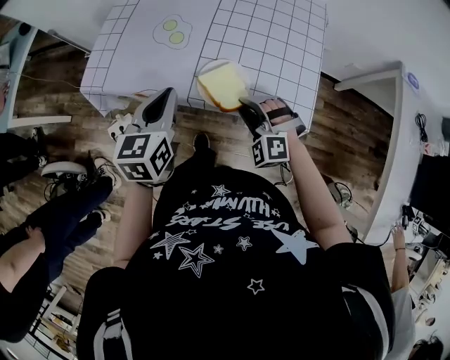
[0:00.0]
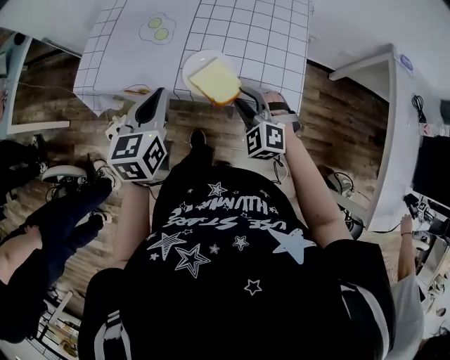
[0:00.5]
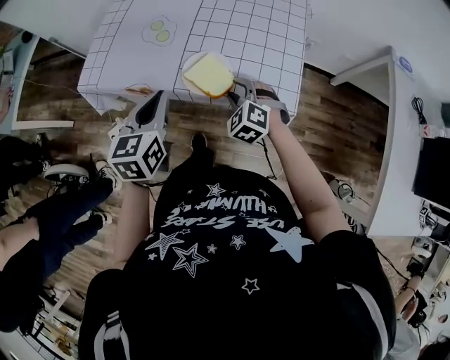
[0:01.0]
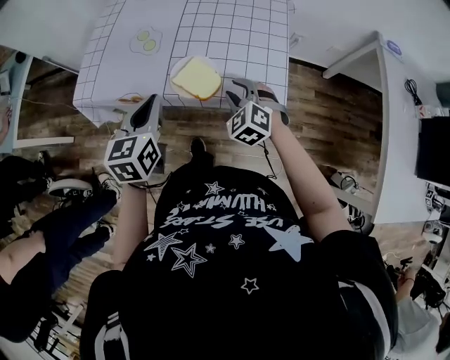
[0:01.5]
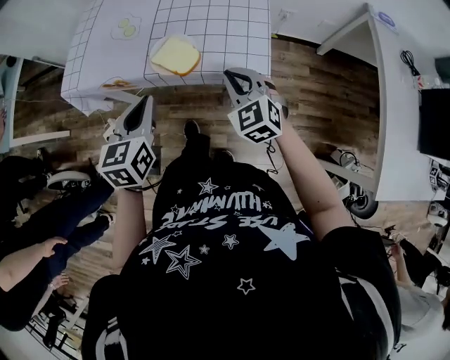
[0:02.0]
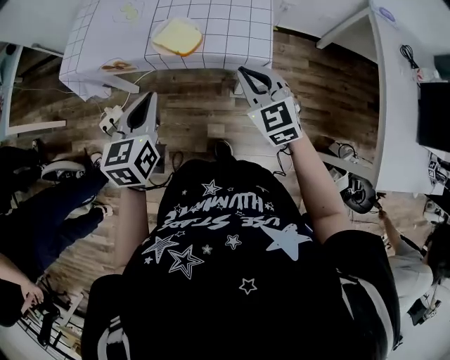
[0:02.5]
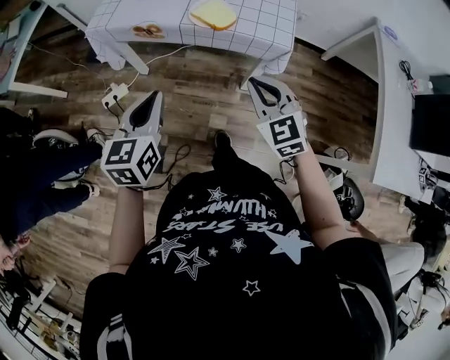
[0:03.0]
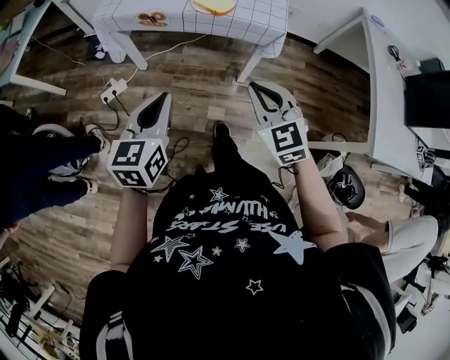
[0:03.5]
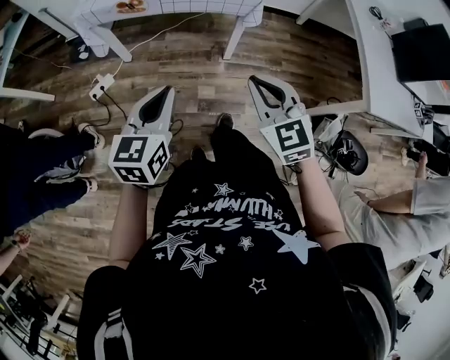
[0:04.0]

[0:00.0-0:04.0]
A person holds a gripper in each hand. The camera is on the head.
0:00.0 to 0:02.0: The left gripper goes about 15 cm backward and to the right. Meanwhile the right gripper travels to the right, upward and backward by some 15 cm, rotates around the line of its fingers by about 40 degrees, clockwise from behind, and closes up.
0:02.0 to 0:04.0: The two grippers go roughly 40 cm backward.

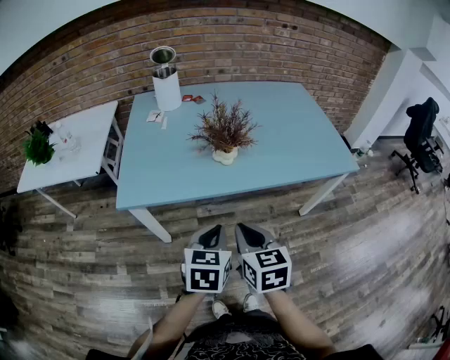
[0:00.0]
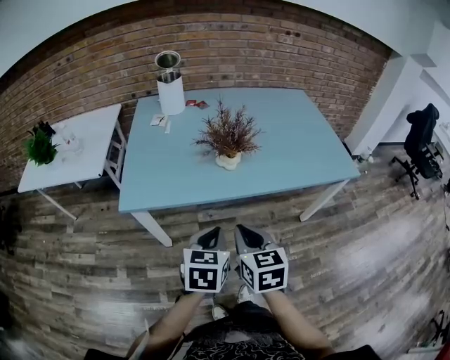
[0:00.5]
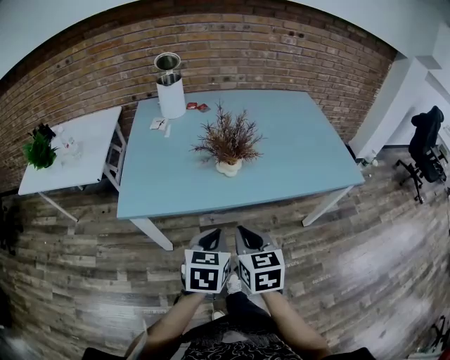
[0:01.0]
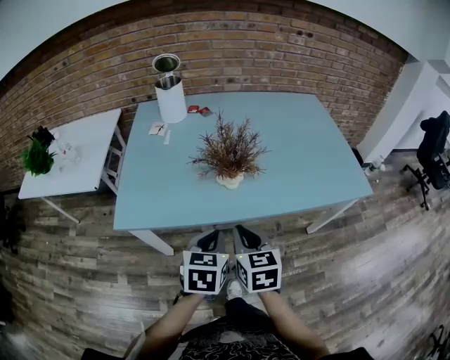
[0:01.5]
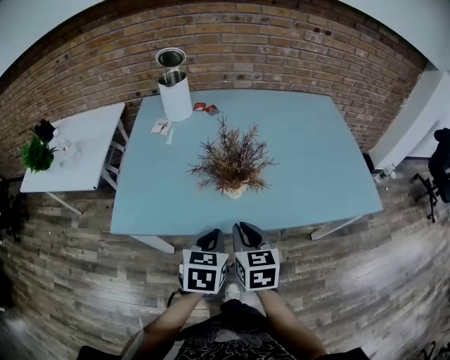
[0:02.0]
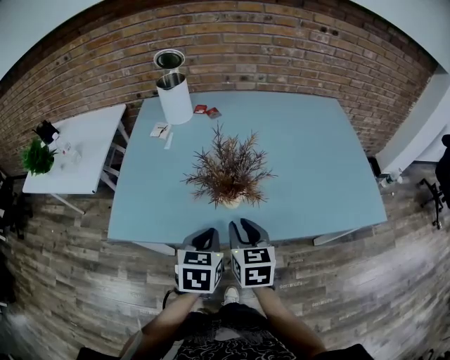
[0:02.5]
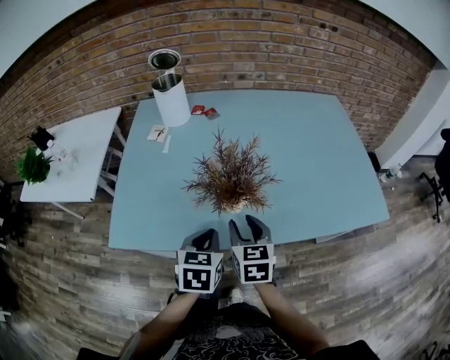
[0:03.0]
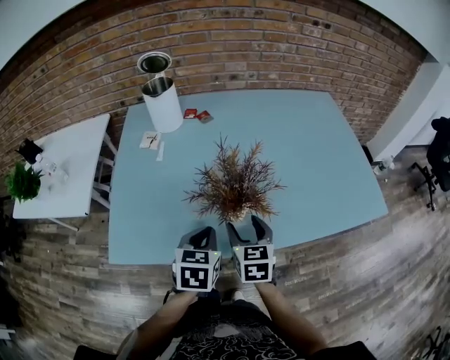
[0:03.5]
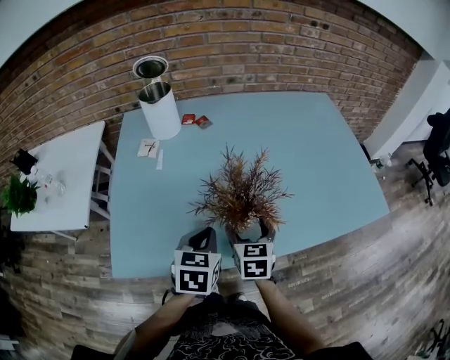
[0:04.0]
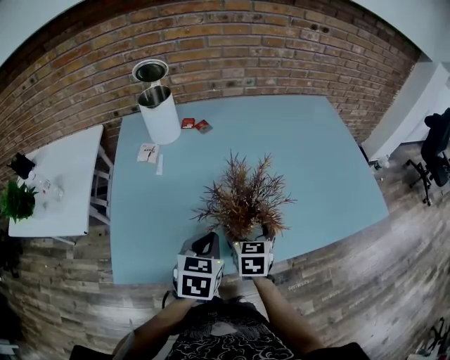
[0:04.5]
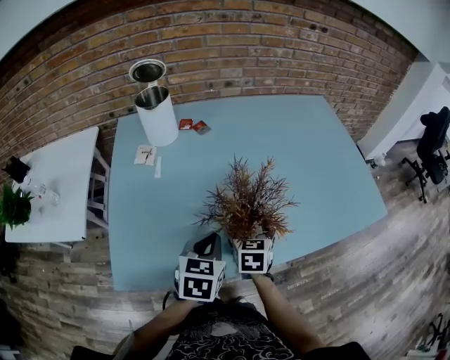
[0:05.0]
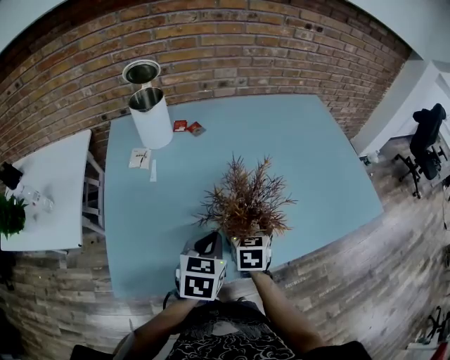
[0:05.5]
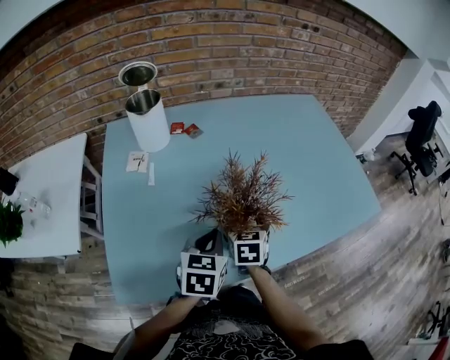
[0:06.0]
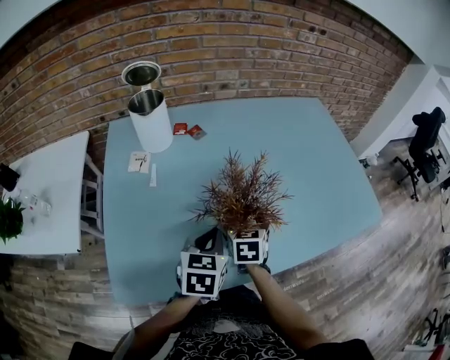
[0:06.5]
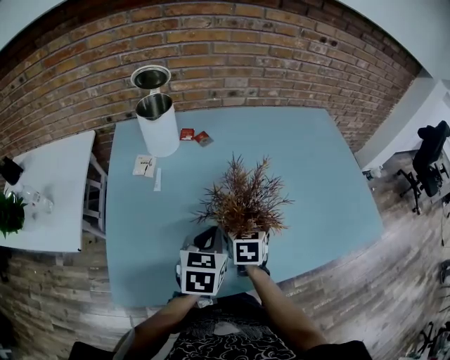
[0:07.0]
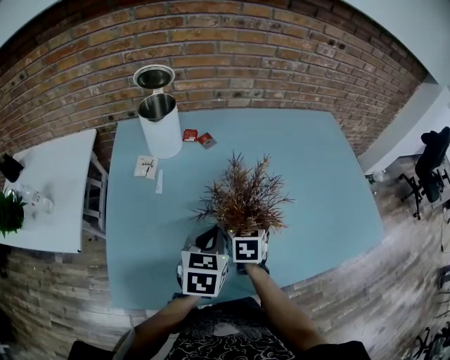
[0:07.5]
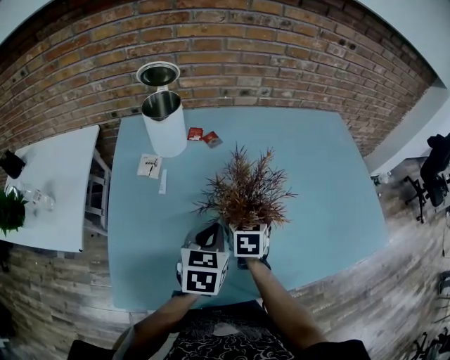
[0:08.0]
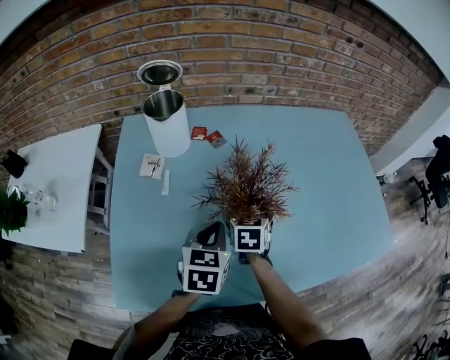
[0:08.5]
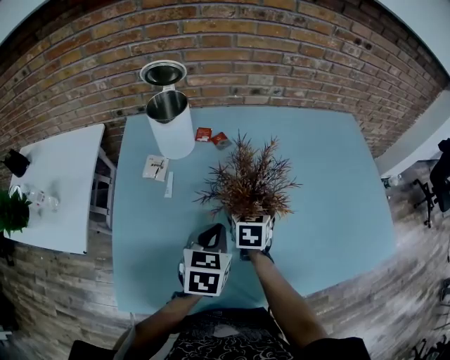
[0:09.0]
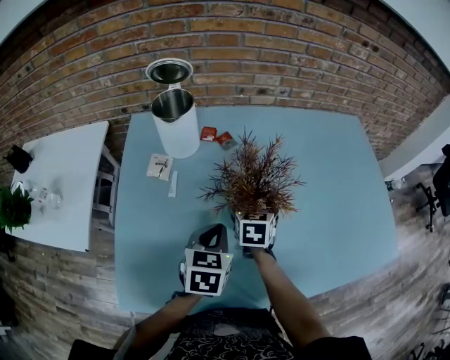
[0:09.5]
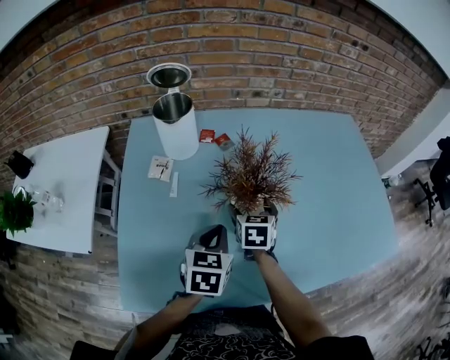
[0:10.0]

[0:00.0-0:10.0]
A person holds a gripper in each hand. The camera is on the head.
0:00.0 to 0:02.0: The two grippers go roughly 15 cm forward.
0:02.0 to 0:04.0: The left gripper goes roughly 15 cm forward and to the left. Meanwhile the right gripper heads forward and downward, covering approximately 15 cm, and opens.
0:04.0 to 0:06.0: The right gripper goes roughly 5 cm forward.
0:06.0 to 0:08.0: Both grippers move forward, approximately 10 cm.

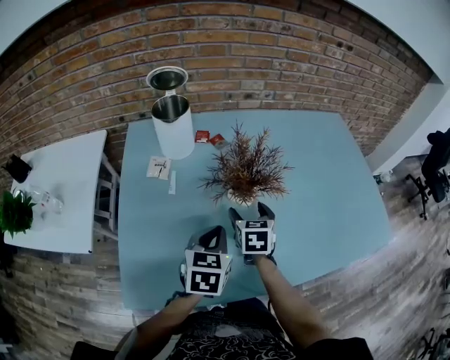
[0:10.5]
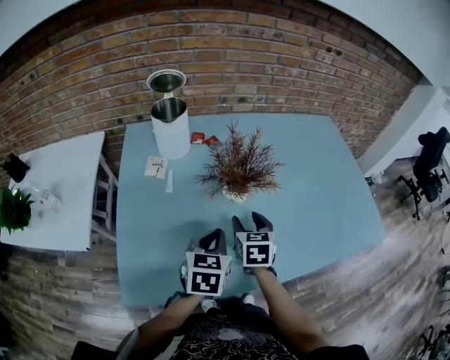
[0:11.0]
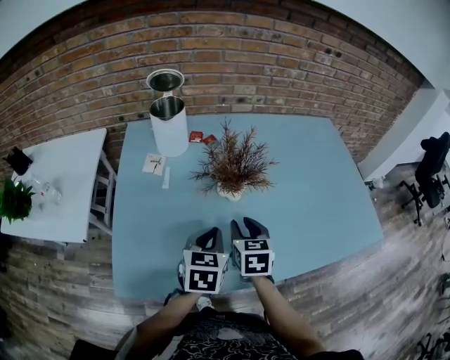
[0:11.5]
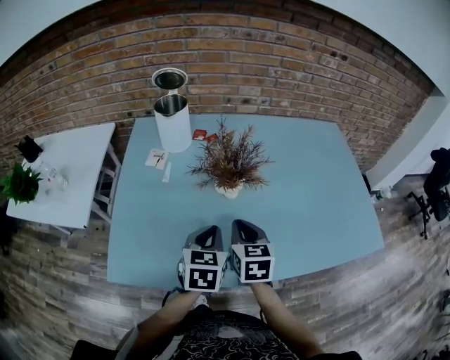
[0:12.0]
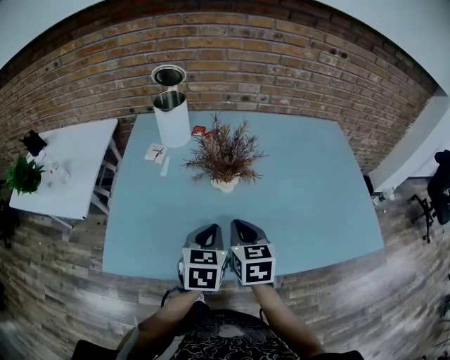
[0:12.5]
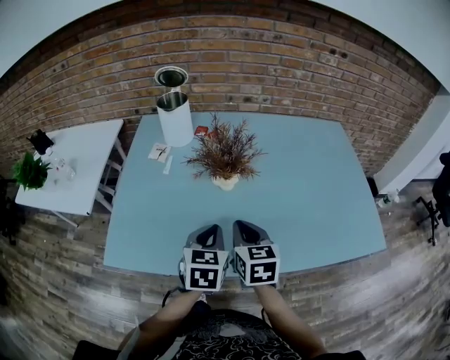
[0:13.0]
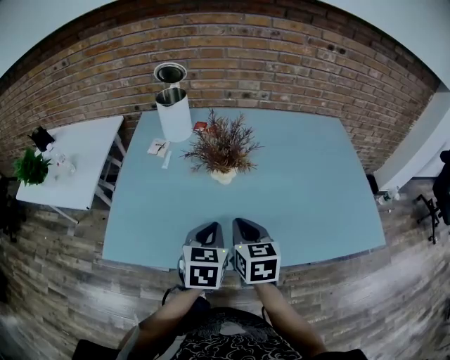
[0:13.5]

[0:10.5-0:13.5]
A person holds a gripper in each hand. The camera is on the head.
0:10.5 to 0:12.0: The right gripper is displaced backward and upward by about 10 cm, and closes. The left gripper shifts by about 5 cm.
0:12.0 to 0:13.5: The left gripper ends up approximately 5 cm from where it was, while the right gripper shifts roughly 5 cm backward.

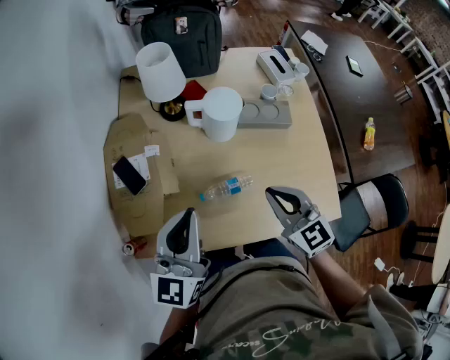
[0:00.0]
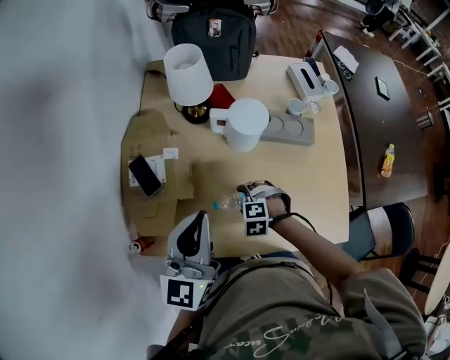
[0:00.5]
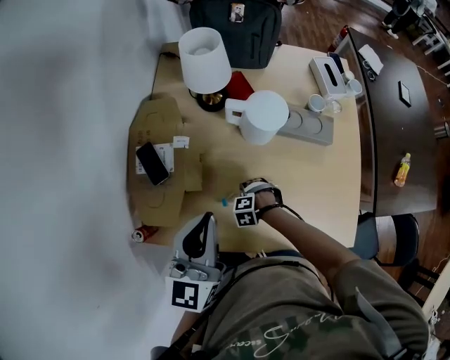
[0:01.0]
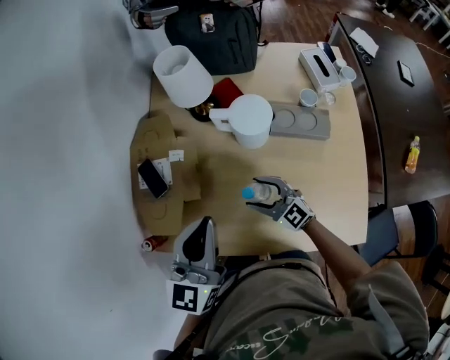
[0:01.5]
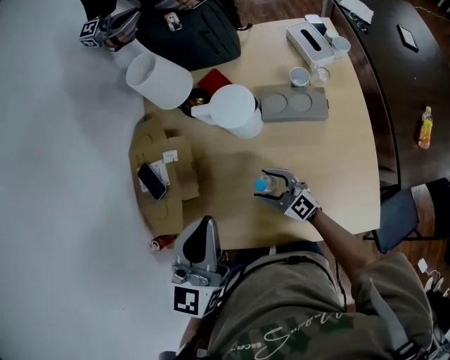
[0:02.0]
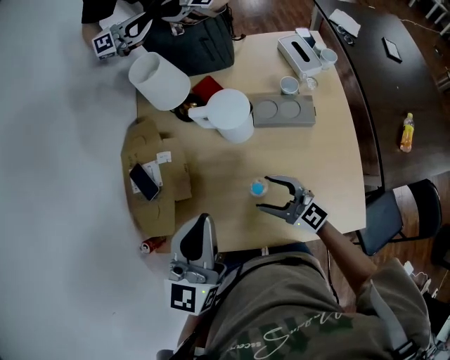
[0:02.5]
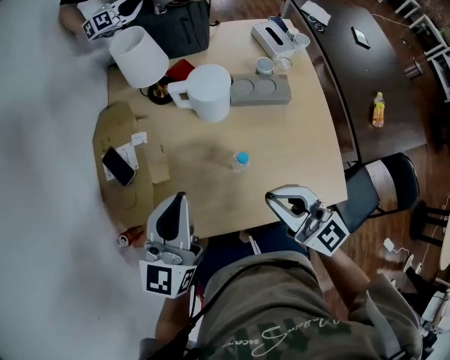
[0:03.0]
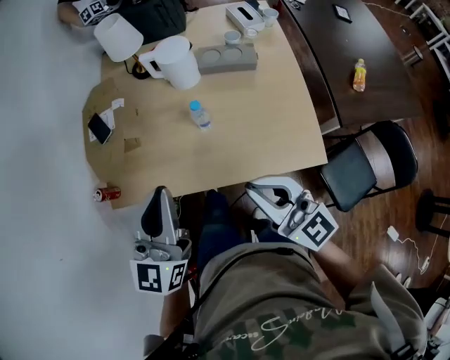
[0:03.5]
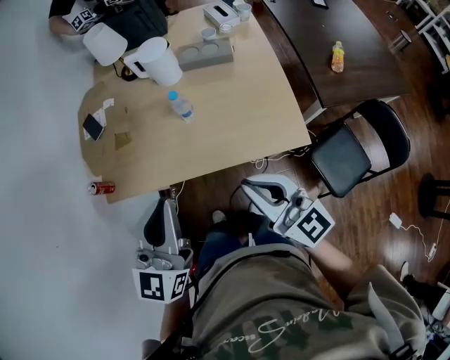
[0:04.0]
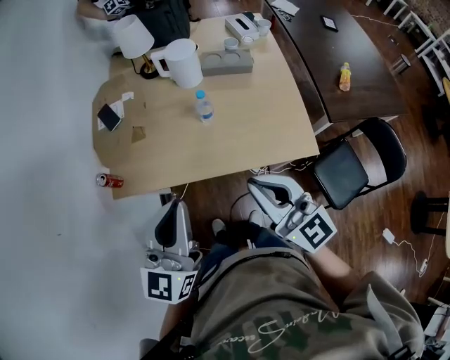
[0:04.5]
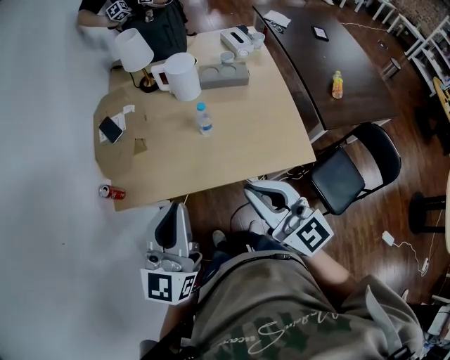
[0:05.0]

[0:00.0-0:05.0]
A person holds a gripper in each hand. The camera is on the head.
0:00.0 to 0:02.5: The right gripper goes up and down, roughly 35 cm each way, reversing 3 times, changes its angle by some 30 degrees, and opens its fingers. The left gripper changes place by about 10 cm.
0:02.5 to 0:05.0: The right gripper travels backward and upward by roughly 35 cm, swivels approximately 20 degrees, and closes up, while the left gripper is displaced backward by some 30 cm.

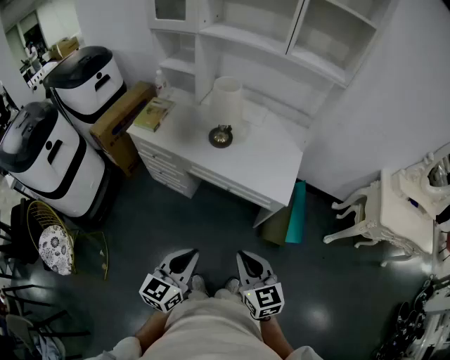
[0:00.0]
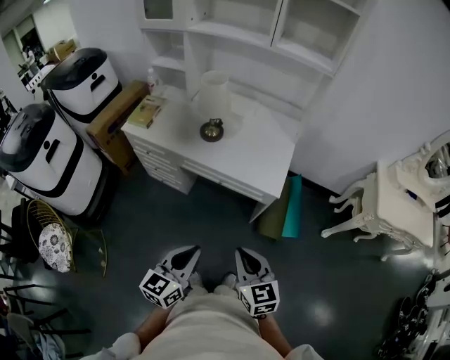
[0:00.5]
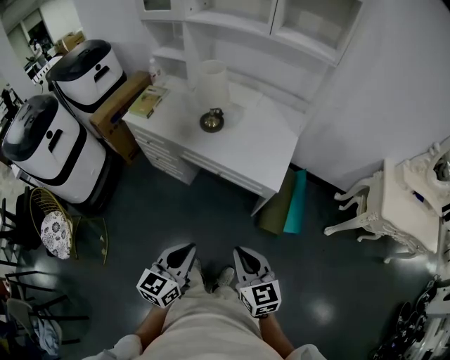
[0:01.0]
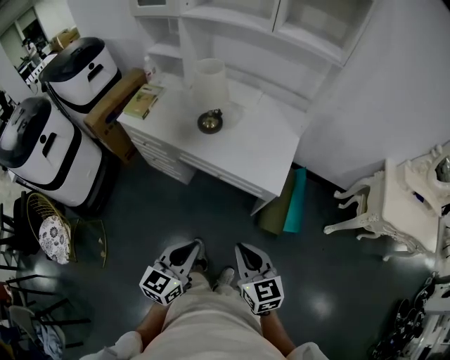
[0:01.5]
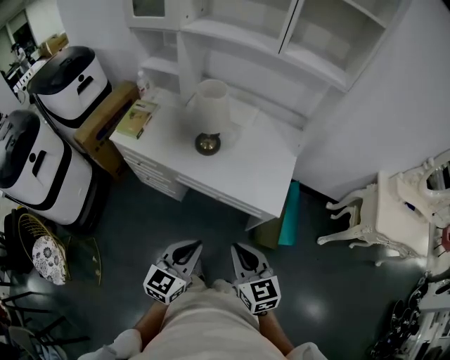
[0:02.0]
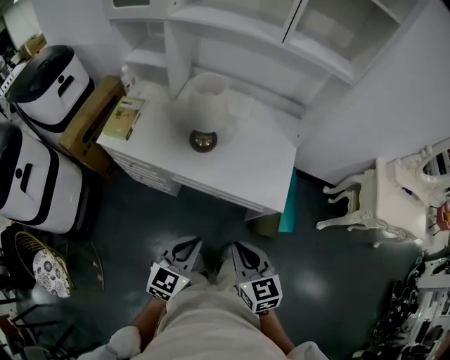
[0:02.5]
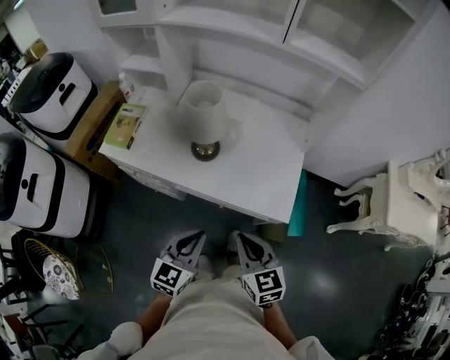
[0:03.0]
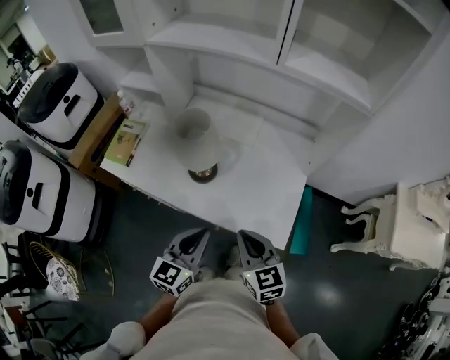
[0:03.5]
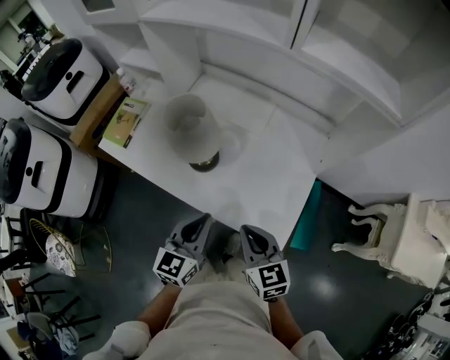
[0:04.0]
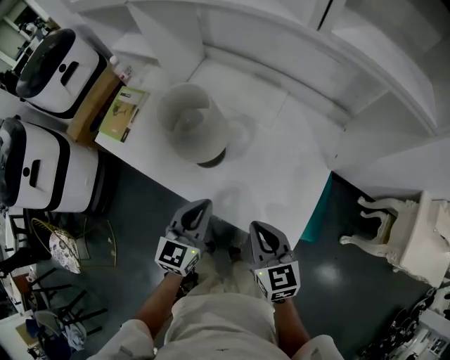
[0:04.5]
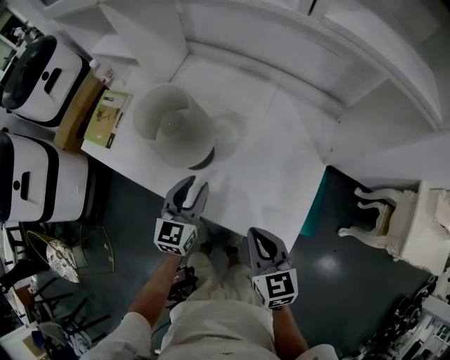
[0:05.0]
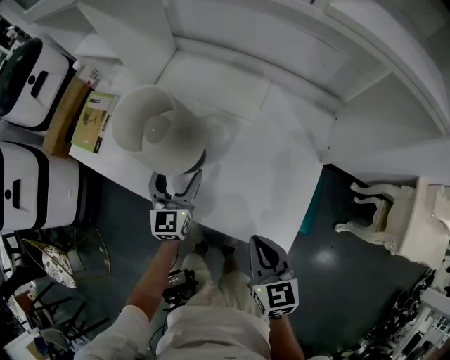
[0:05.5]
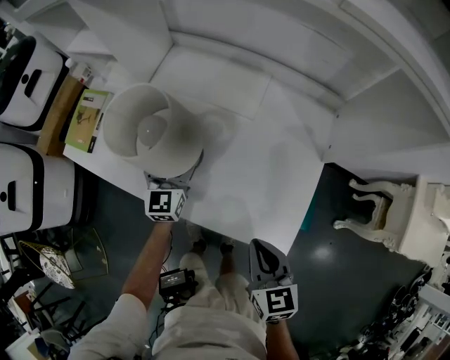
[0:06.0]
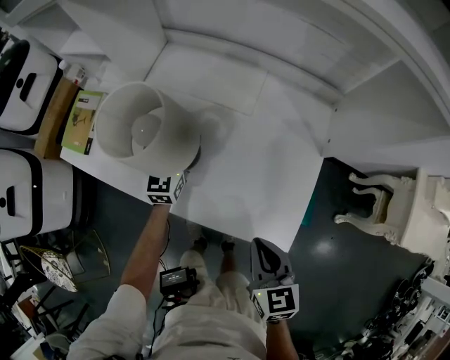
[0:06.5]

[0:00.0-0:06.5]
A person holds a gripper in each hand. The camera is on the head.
0:00.0 to 0:02.0: Both grippers travel together forward, approximately 10 cm.
0:02.0 to 0:04.5: The grippers both shift forward by roughly 30 cm.
0:04.5 to 0:06.5: The left gripper travels forward and downward by roughly 25 cm, and opens; the right gripper moves some 5 cm.
